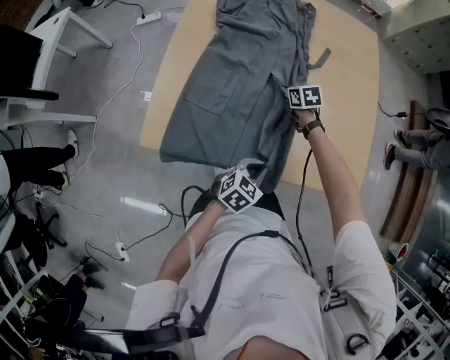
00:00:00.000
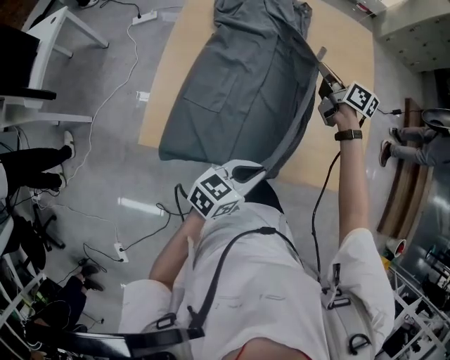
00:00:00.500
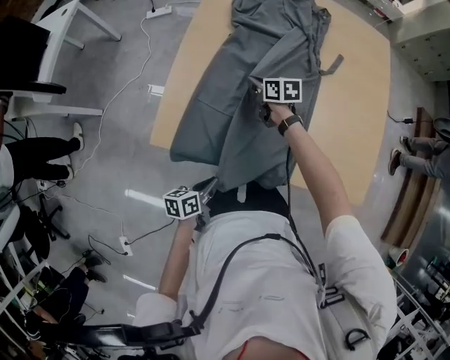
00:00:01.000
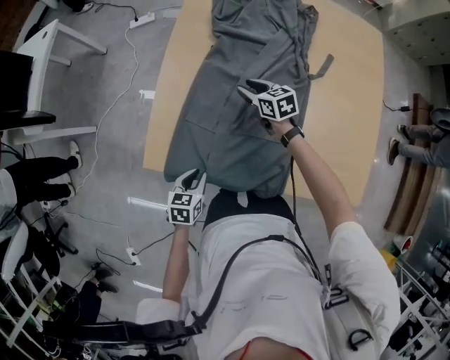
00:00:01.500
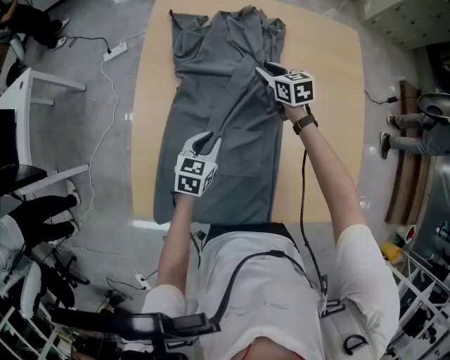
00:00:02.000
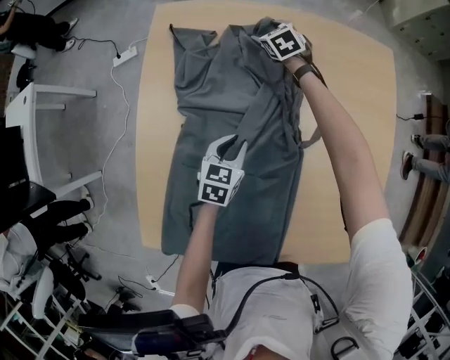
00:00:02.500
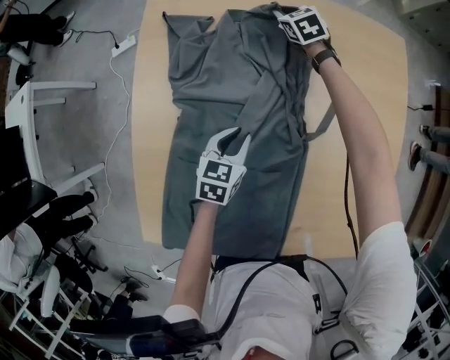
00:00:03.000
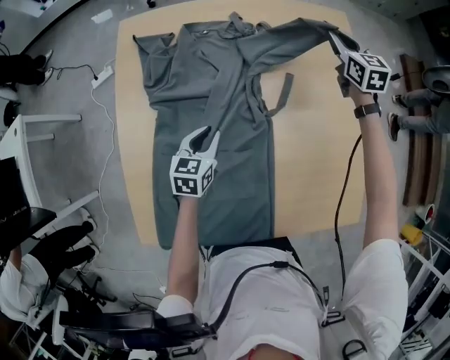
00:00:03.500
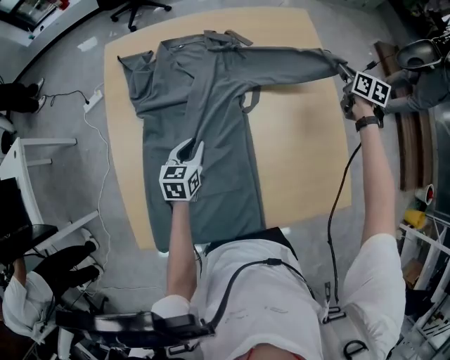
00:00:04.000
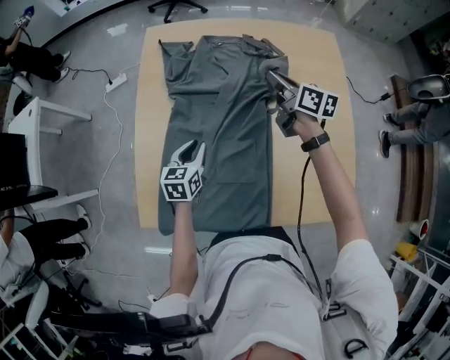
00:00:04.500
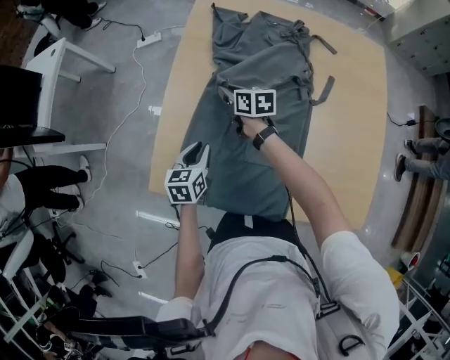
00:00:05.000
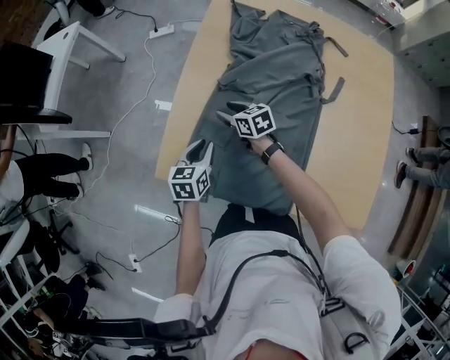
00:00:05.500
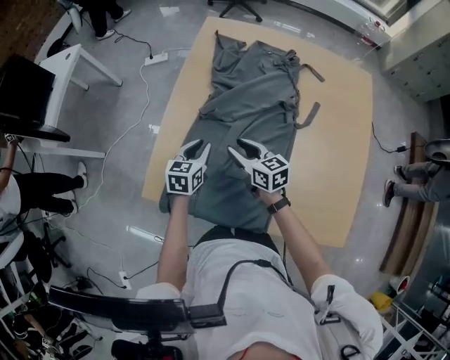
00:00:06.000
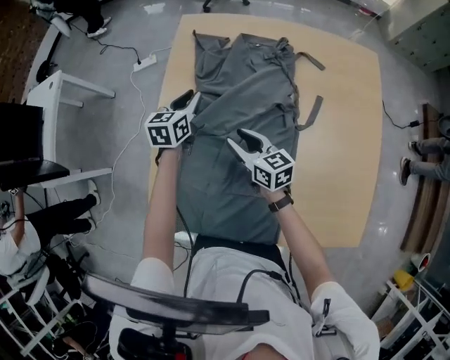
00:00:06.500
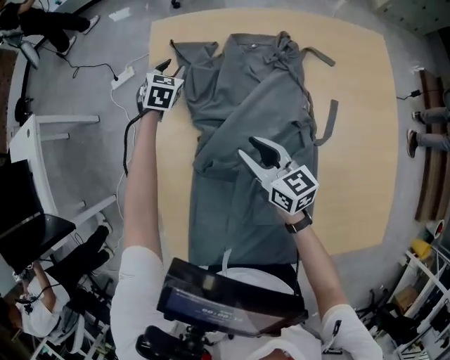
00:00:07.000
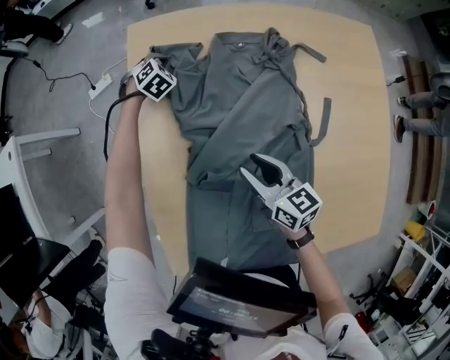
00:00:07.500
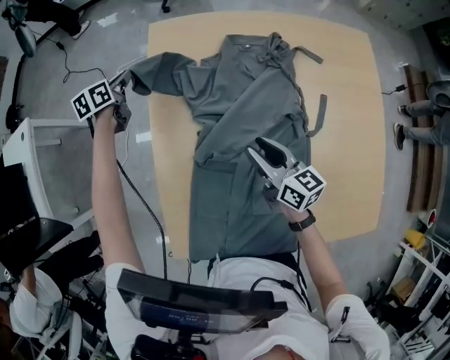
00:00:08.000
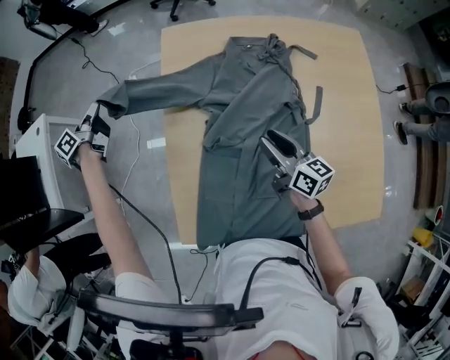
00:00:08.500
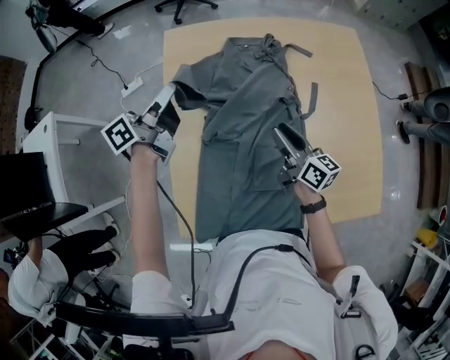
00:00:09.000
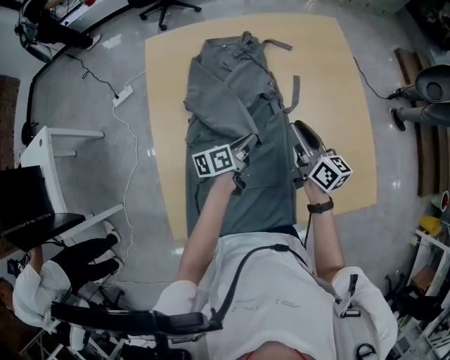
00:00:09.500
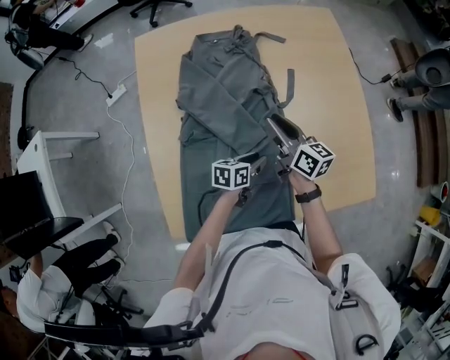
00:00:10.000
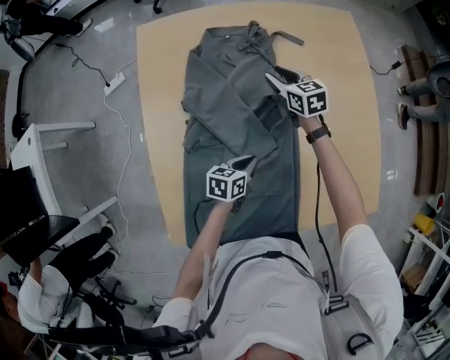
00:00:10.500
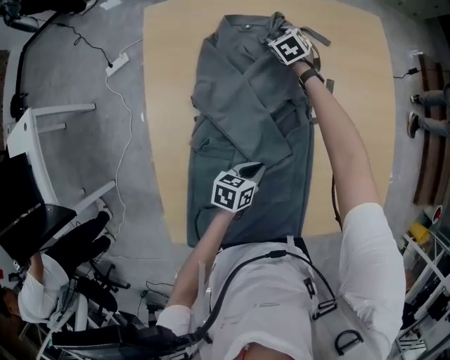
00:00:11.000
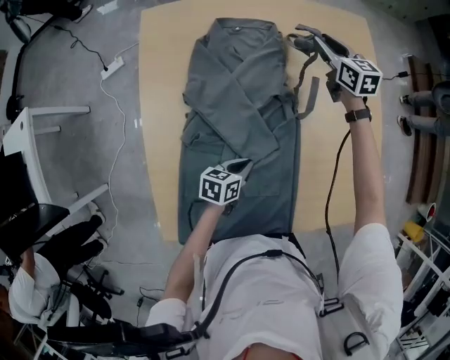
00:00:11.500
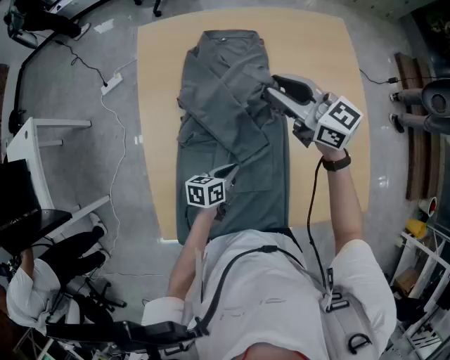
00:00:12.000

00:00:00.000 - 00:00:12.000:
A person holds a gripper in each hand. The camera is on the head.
00:00:00.000 - 00:00:02.000: The left gripper moves up and down over approximately 15 cm, changing direction 2 times, and swivels roughly 20 degrees. Meanwhile the right gripper swings up and down, some 20 cm each way, with 2 reversals, and rotates about 20 degrees.
00:00:02.000 - 00:00:04.000: The left gripper heads forward and to the right, covering some 10 cm; the right gripper shifts roughly 40 cm to the right, changes its angle by about 40 degrees, and opens and closes again.
00:00:04.000 - 00:00:06.000: The left gripper moves about 20 cm, and rotates some 20 degrees; the right gripper moves up and down over some 20 cm, changing direction 2 times, and rotates approximately 60 degrees.
00:00:06.000 - 00:00:08.000: The right gripper shifts approximately 15 cm forward and to the right, and swivels approximately 30 degrees; the left gripper heads forward, covering approximately 50 cm.
00:00:08.000 - 00:00:10.000: The right gripper moves some 15 cm; the left gripper moves roughly 20 cm upward and comes back, swivels roughly 30 degrees, and opens its fingers.
00:00:10.000 - 00:00:12.000: The right gripper travels upward and to the left by about 15 cm, goes forward and returns, some 30 cm each way, and turns by roughly 40 degrees. Meanwhile the left gripper moves to the left, approximately 10 cm, and closes.

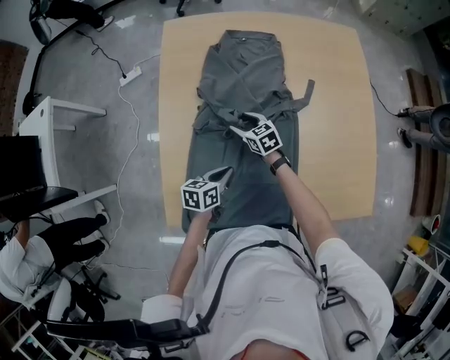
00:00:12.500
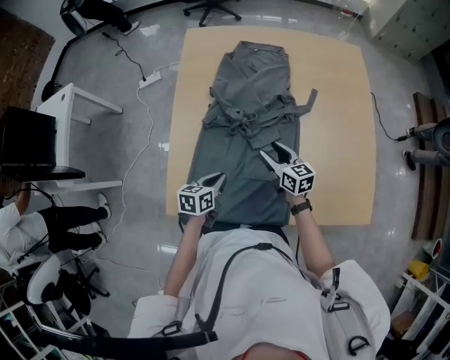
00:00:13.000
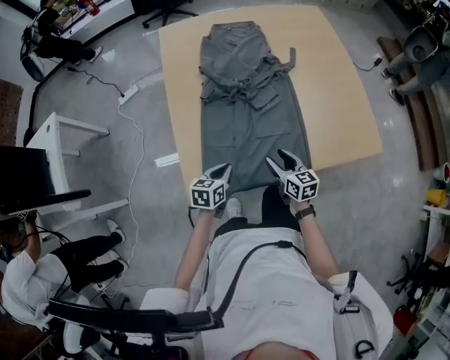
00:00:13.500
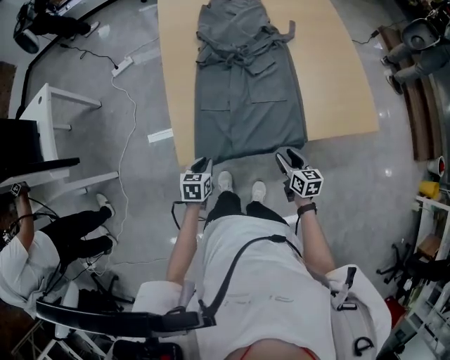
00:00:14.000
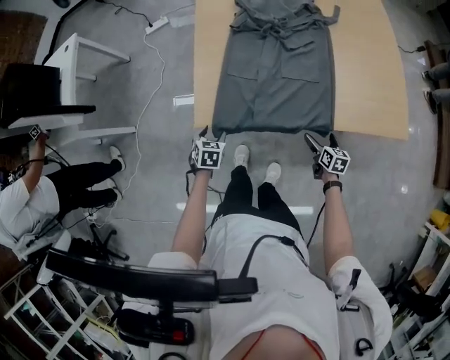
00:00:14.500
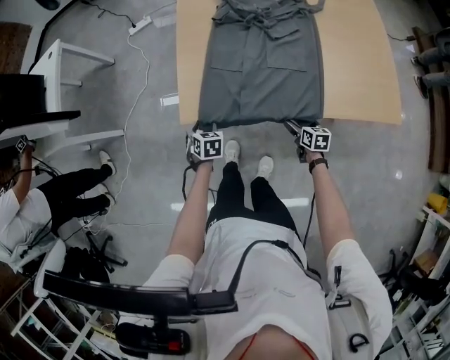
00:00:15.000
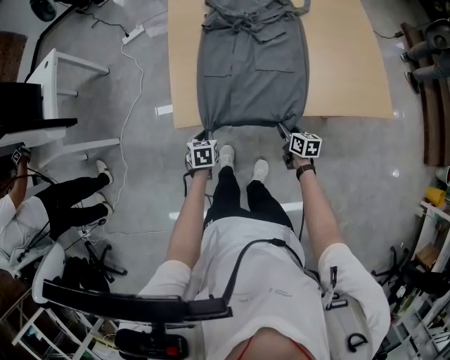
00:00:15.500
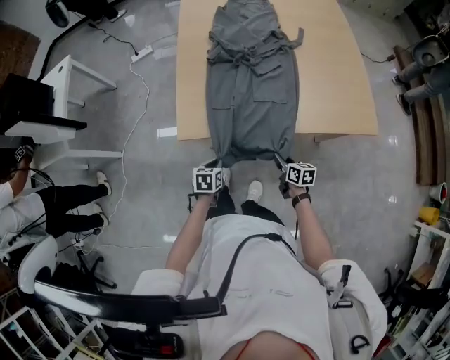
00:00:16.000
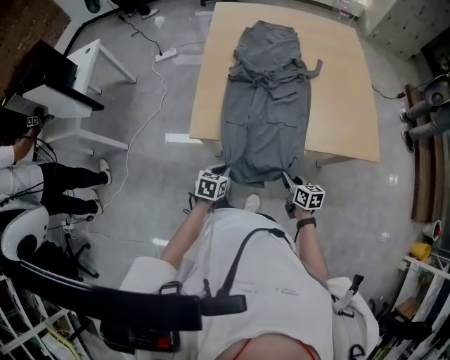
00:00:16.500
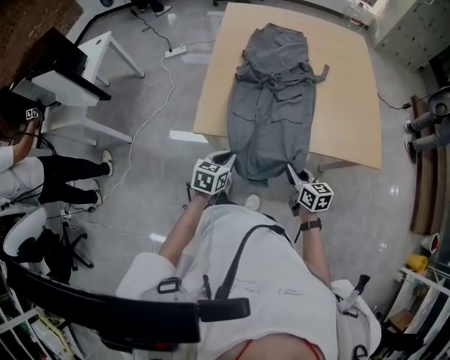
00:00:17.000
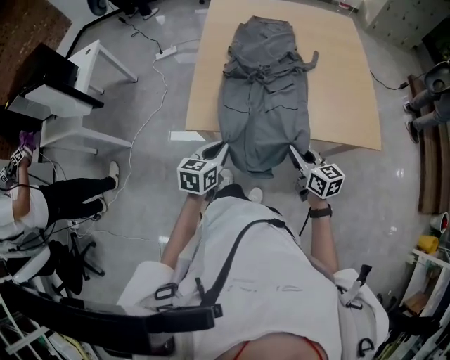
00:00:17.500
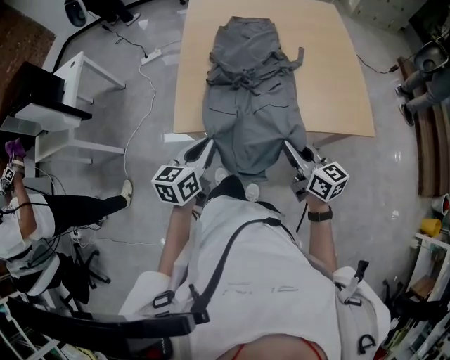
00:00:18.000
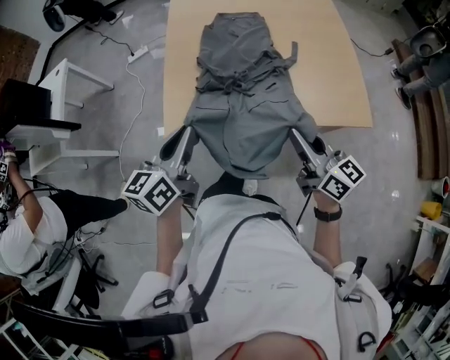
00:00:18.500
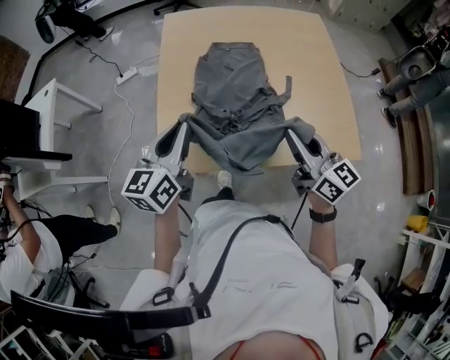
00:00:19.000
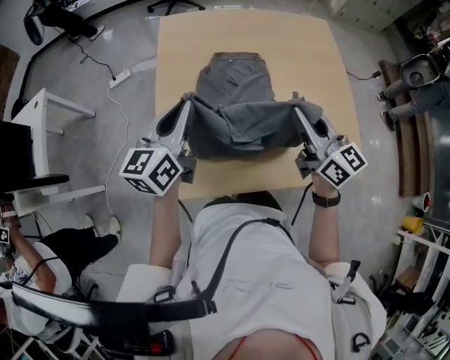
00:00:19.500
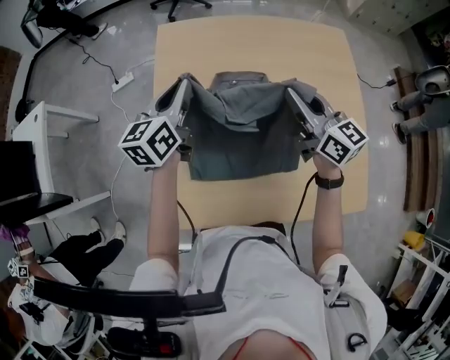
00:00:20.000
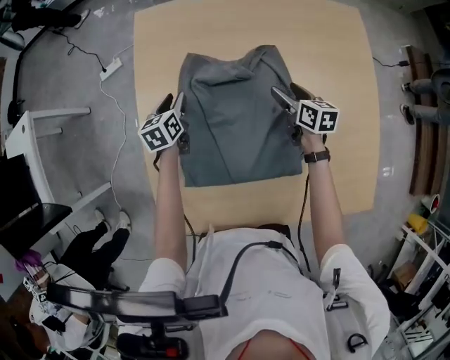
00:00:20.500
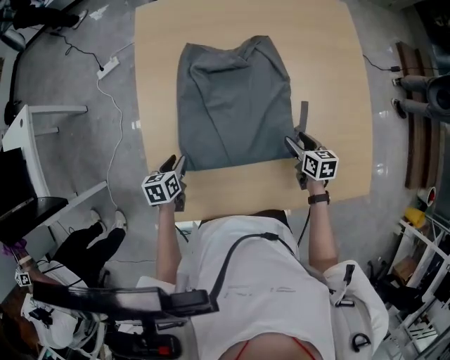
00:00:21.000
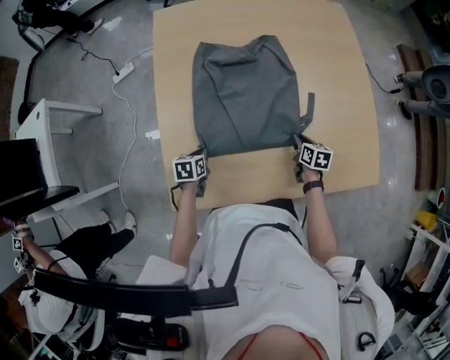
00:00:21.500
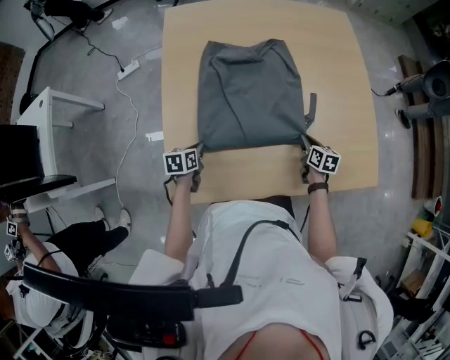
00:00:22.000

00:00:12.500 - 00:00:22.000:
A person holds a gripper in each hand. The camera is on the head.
00:00:12.500 - 00:00:14.500: The left gripper heads backward and to the left, covering about 30 cm, turns by some 40 degrees, and opens its fingers. The right gripper shifts approximately 50 cm backward and to the right, swivels roughly 40 degrees, and opens.
00:00:14.500 - 00:00:16.500: The right gripper travels upward, to the left and backward by some 15 cm, and closes up. The left gripper shifts roughly 15 cm backward, to the right and upward, and closes.
00:00:16.500 - 00:00:18.000: The two grippers go approximately 20 cm upward. The right gripper swivels some 20 degrees, while the left gripper rotates roughly 30 degrees.
00:00:18.000 - 00:00:20.000: Both grippers are carried forward, roughly 50 cm.
00:00:20.000 - 00:00:22.000: The two grippers go about 40 cm downward and backward. The right gripper points its fingers roughly 40 degrees further downward, and opens, then closes once more, while the left gripper tips its fingers downward by roughly 40 degrees, and opens, then closes again.

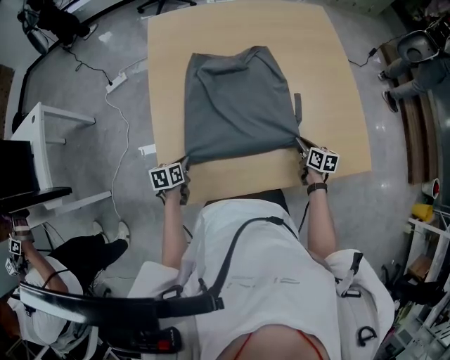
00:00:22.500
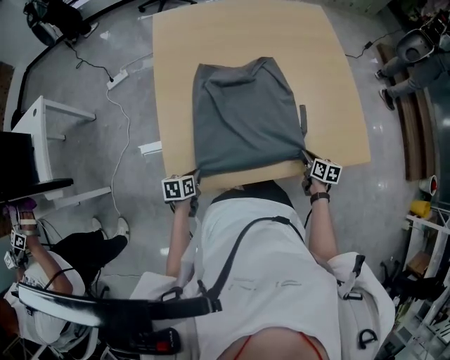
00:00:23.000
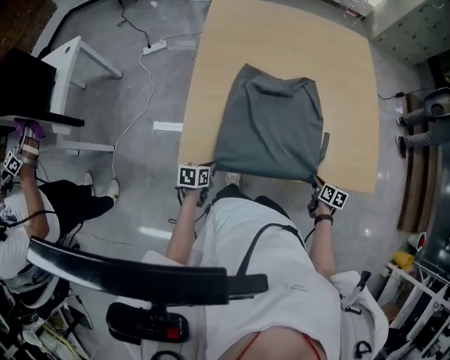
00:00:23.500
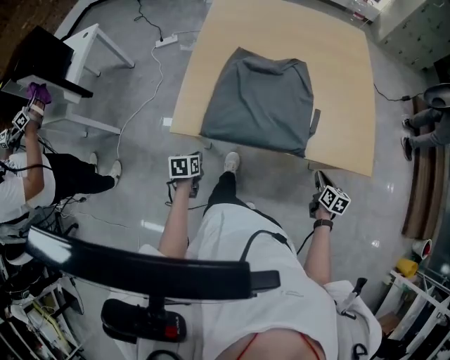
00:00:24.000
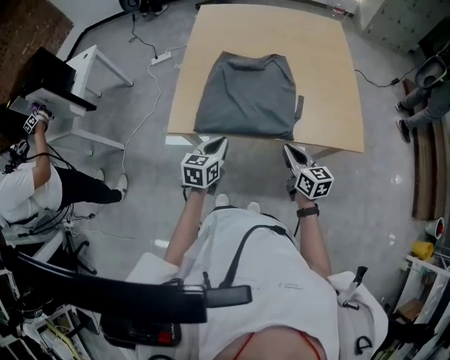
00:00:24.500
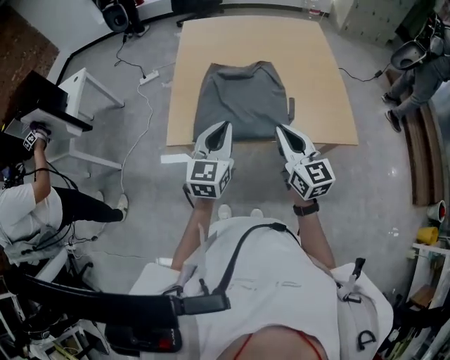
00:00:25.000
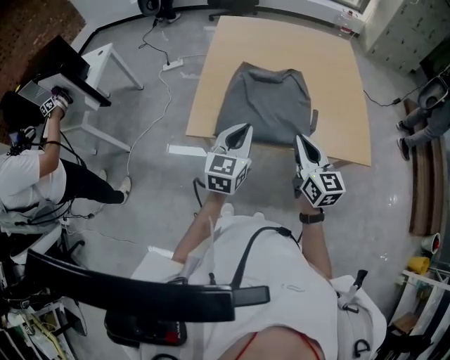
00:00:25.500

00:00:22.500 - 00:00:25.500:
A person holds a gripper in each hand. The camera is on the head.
00:00:22.500 - 00:00:24.000: The right gripper goes approximately 25 cm backward and to the right, while the left gripper moves backward, approximately 25 cm.
00:00:24.000 - 00:00:25.500: The right gripper heads upward and to the left, covering some 35 cm, and angles its fingers upward, by about 30 degrees. Meanwhile the left gripper shifts roughly 35 cm upward and to the right, and tilts its fingers some 50 degrees upward.

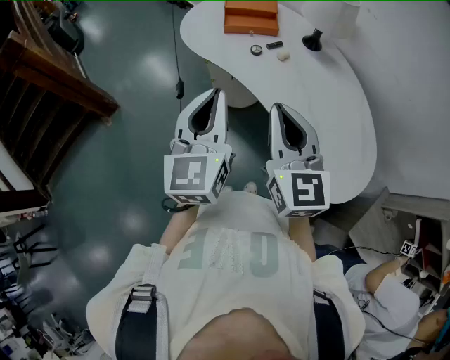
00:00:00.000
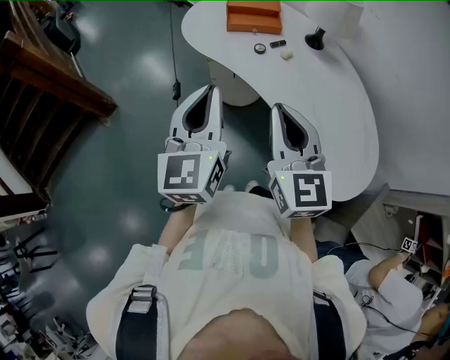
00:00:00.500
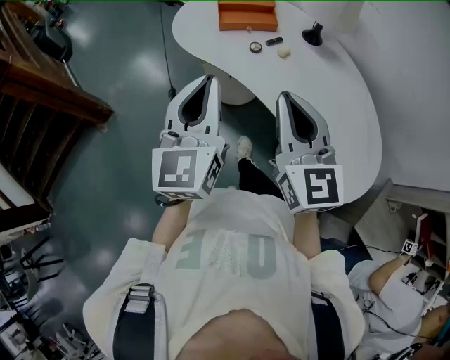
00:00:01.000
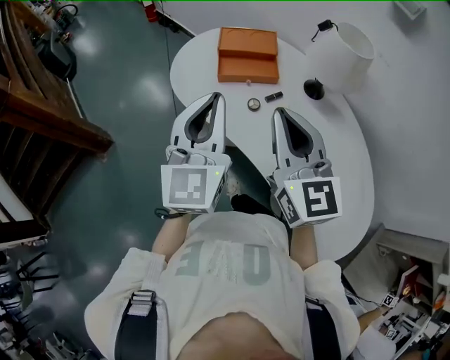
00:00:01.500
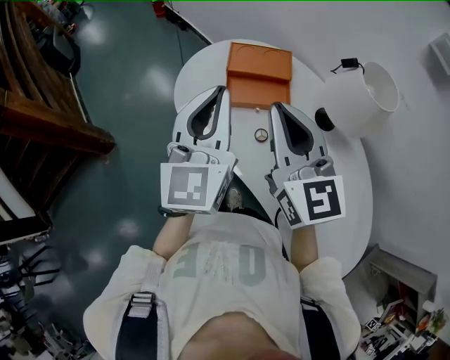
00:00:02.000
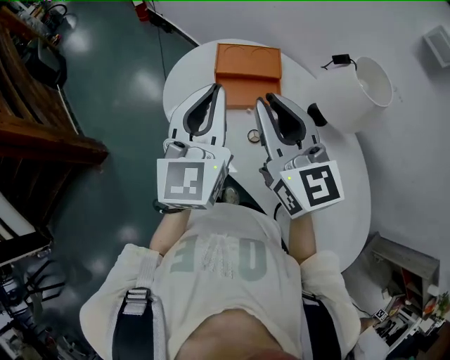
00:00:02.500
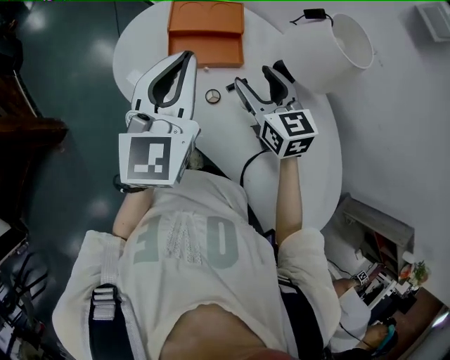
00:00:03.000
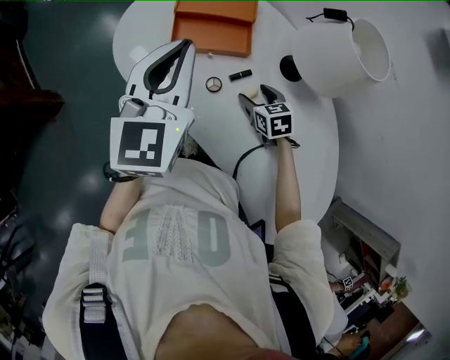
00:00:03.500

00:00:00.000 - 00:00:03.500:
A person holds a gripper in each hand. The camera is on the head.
00:00:00.000 - 00:00:02.000: The two grippers go approximately 35 cm forward.
00:00:02.000 - 00:00:03.500: The right gripper travels downward by approximately 35 cm, angles its fingers downward, by roughly 50 degrees, and opens, while the left gripper goes about 10 cm downward.
